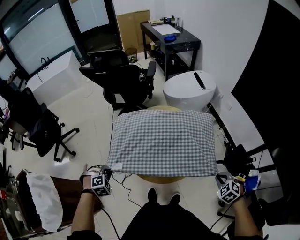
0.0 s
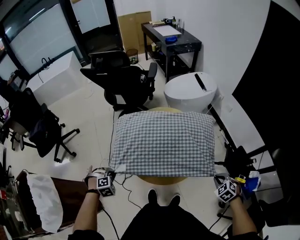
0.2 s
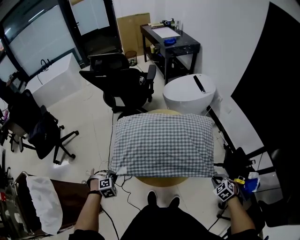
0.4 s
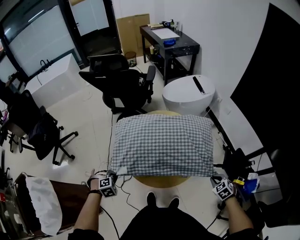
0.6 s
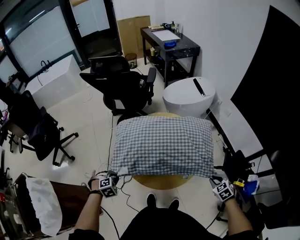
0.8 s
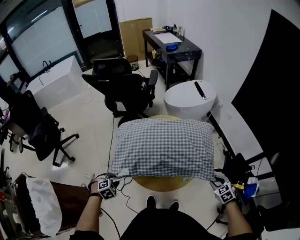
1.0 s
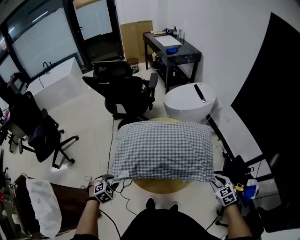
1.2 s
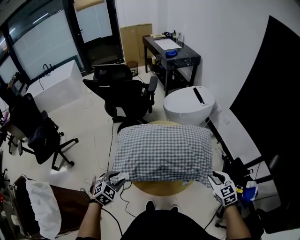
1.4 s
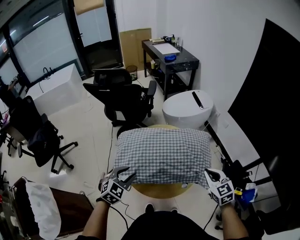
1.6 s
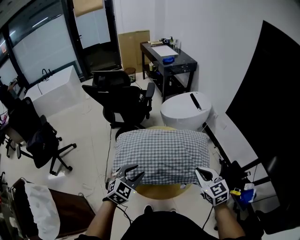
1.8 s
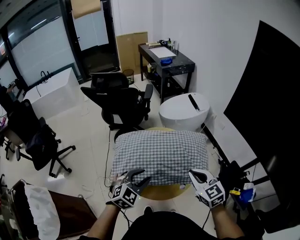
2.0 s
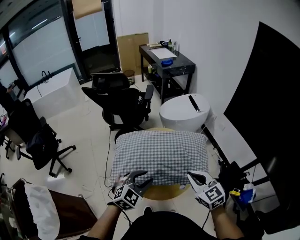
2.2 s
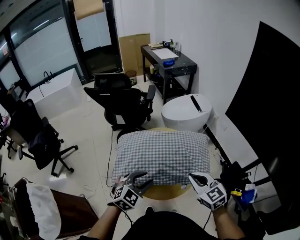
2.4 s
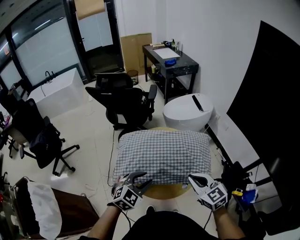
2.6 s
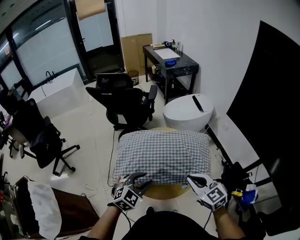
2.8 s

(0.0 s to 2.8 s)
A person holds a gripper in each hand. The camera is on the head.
0.0 s - 1.4 s: The right gripper heads forward and upward, covering about 10 cm, changes its angle by some 30 degrees, and opens its fingers; the left gripper goes about 10 cm upward and to the right, turns by roughly 30 degrees, and opens.
1.4 s - 2.8 s: The right gripper moves to the left and upward, roughly 15 cm, turns by some 20 degrees, and closes. The left gripper heads to the right and upward, covering some 15 cm.

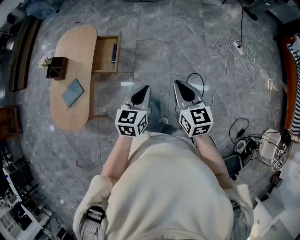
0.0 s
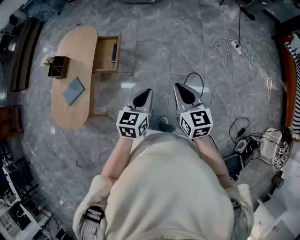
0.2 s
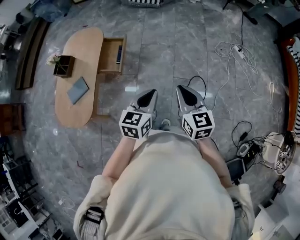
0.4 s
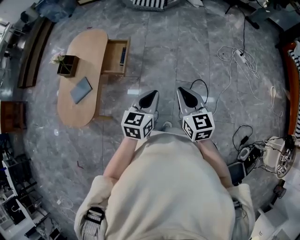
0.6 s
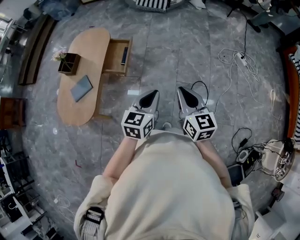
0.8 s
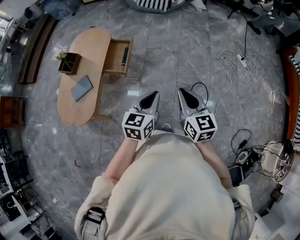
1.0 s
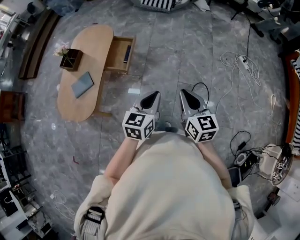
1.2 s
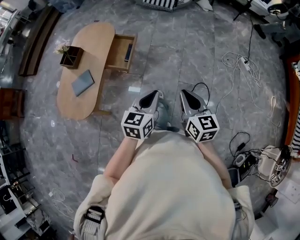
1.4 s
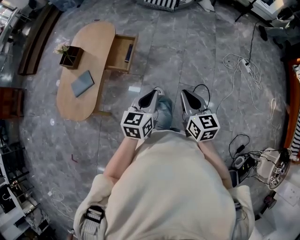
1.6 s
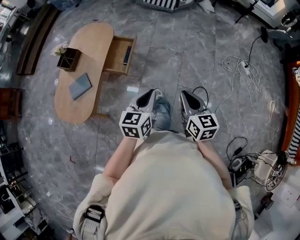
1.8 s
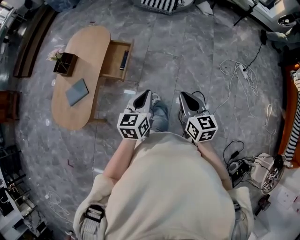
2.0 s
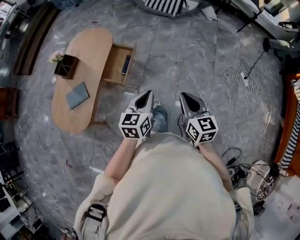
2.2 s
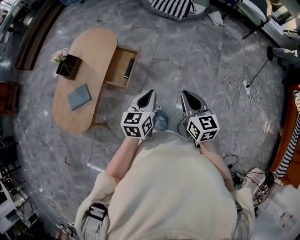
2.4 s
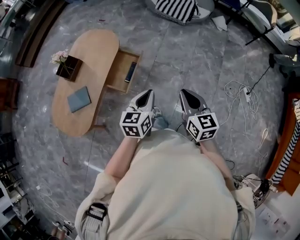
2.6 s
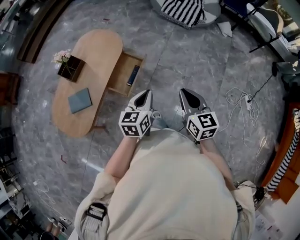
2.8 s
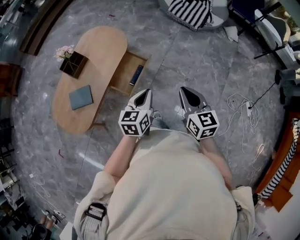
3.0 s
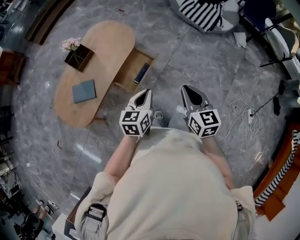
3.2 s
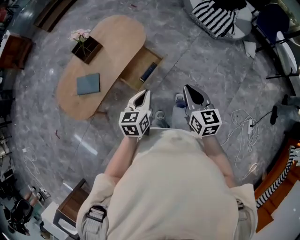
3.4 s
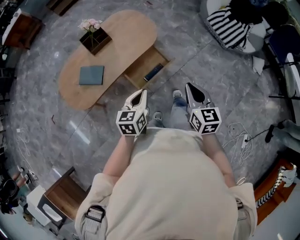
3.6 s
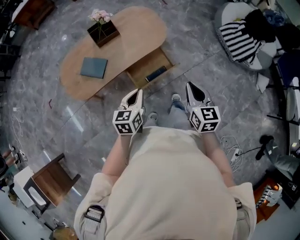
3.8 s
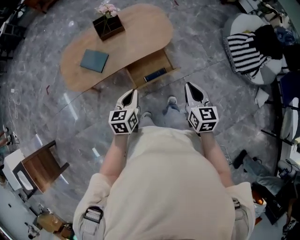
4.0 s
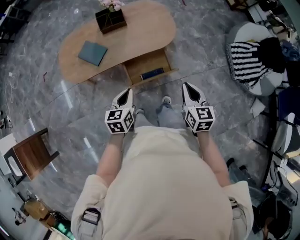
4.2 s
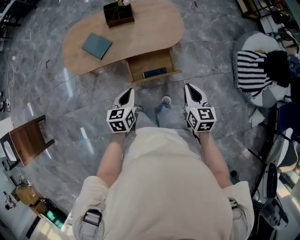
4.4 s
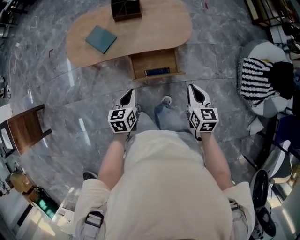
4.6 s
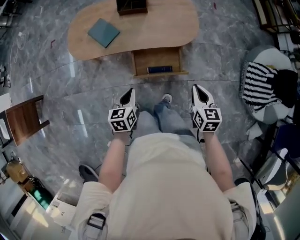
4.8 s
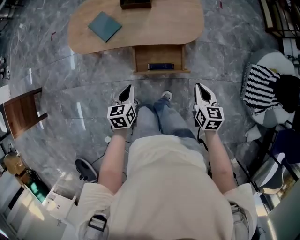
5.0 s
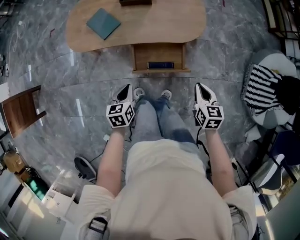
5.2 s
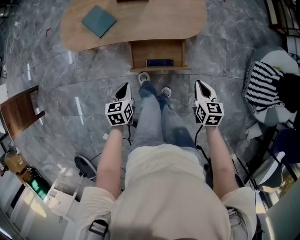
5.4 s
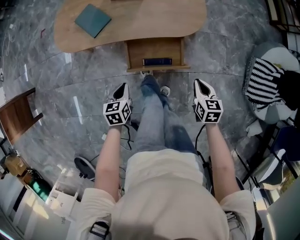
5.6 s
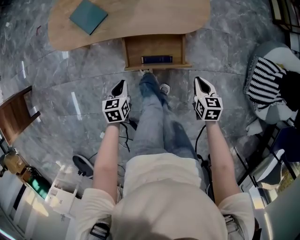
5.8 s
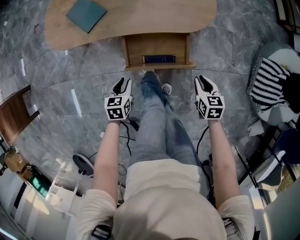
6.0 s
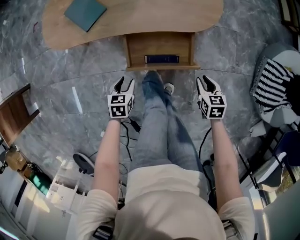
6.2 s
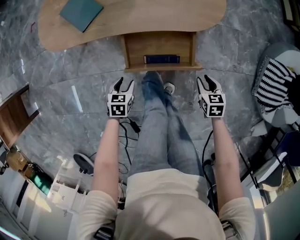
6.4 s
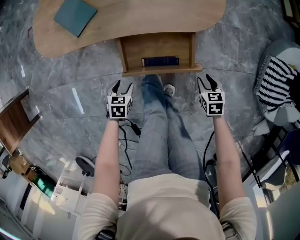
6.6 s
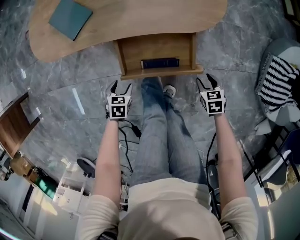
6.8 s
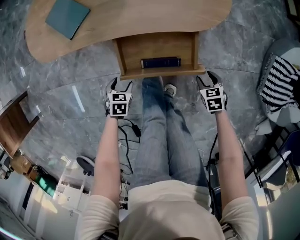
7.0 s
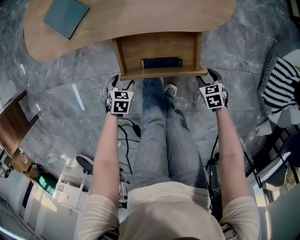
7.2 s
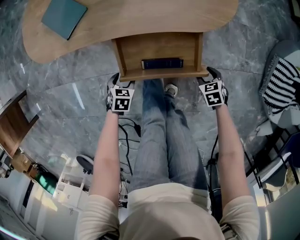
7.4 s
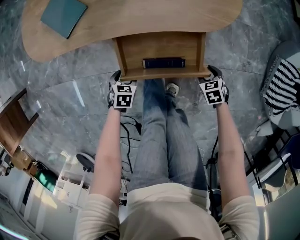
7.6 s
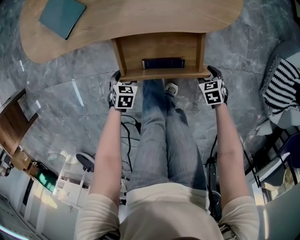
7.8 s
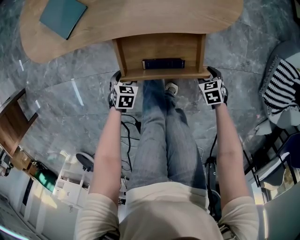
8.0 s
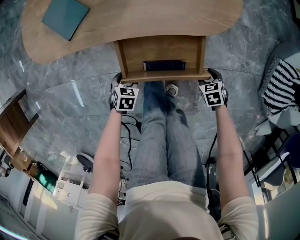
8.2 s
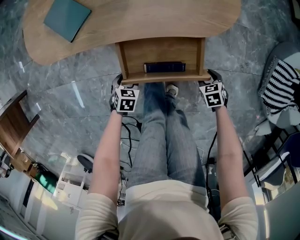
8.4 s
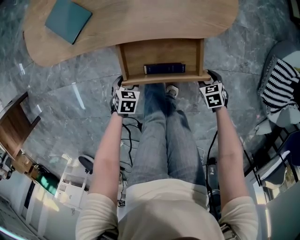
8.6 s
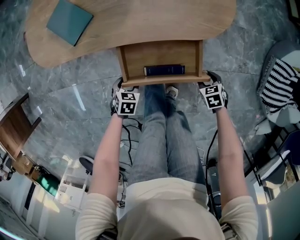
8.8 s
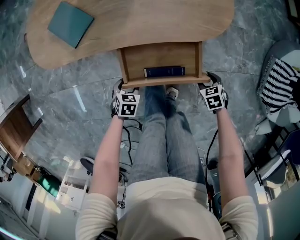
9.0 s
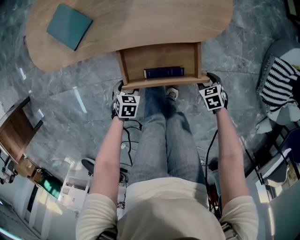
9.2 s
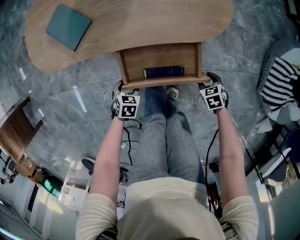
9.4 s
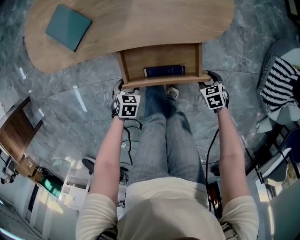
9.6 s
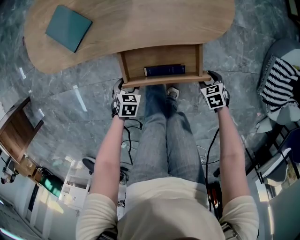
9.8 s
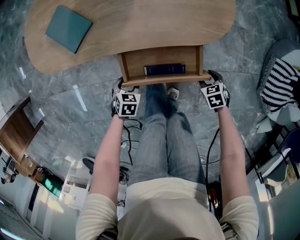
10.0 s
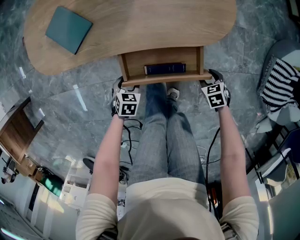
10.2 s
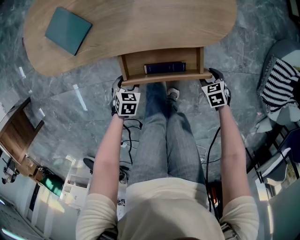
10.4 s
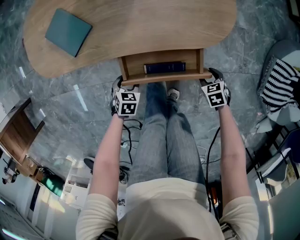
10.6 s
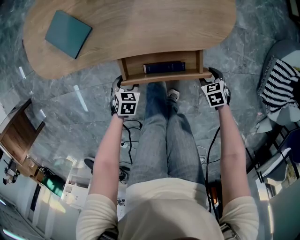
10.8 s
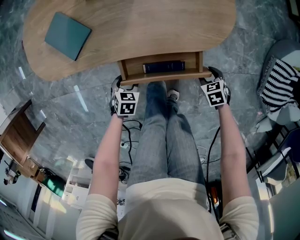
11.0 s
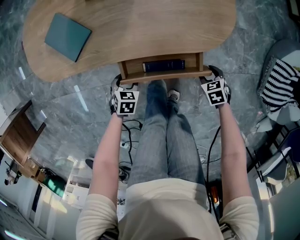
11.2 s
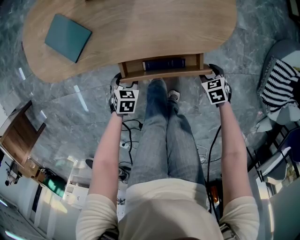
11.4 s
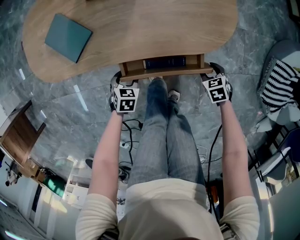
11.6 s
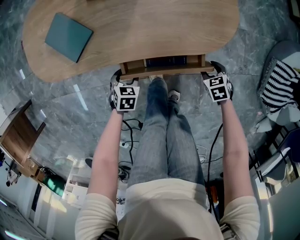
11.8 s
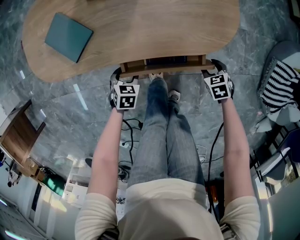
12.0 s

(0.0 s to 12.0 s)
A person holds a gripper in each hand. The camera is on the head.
0.0 s - 1.6 s: The grippers both shift backward by some 5 cm.
1.6 s - 3.0 s: Both grippers move forward, about 30 cm. The left gripper changes its angle by some 20 degrees.
3.0 s - 4.4 s: The left gripper shifts by roughly 15 cm, and rotates about 60 degrees. Meanwhile the right gripper ends up roughly 30 cm from where it was, and turns by approximately 40 degrees.
4.4 s - 6.0 s: Both grippers travel together downward, roughly 25 cm. The right gripper rotates approximately 20 degrees. The left gripper opens its fingers.
6.0 s - 7.6 s: Both grippers travel together downward, approximately 20 cm. The left gripper turns by some 20 degrees, and opens up. Meanwhile the right gripper changes its angle by about 30 degrees, and opens up.
7.6 s - 9.0 s: There are only small adjustments of the grippers.
9.0 s - 10.4 s: There are only small adjustments of the grippers.
10.4 s - 12.0 s: The left gripper ends up about 10 cm from where it was. The right gripper moves approximately 5 cm.

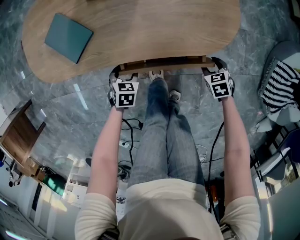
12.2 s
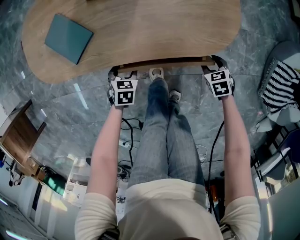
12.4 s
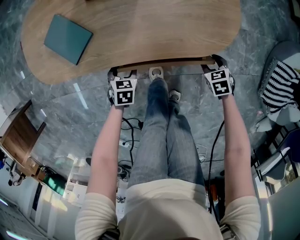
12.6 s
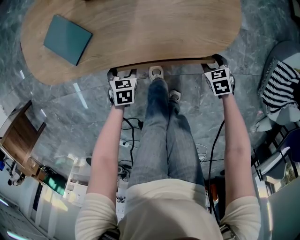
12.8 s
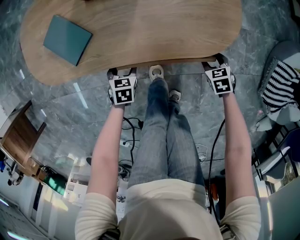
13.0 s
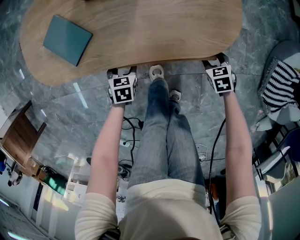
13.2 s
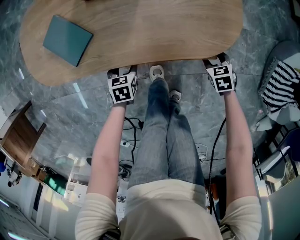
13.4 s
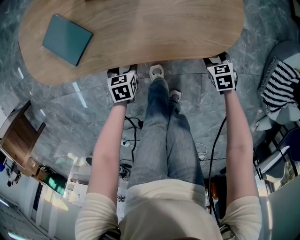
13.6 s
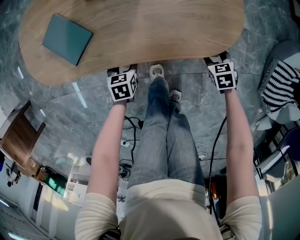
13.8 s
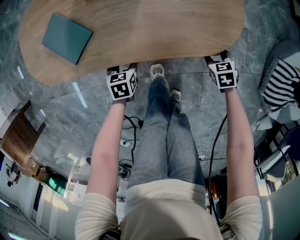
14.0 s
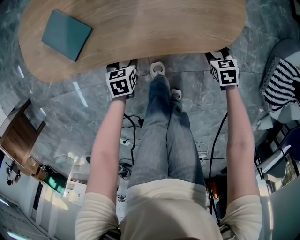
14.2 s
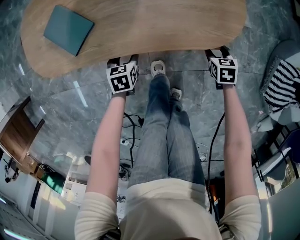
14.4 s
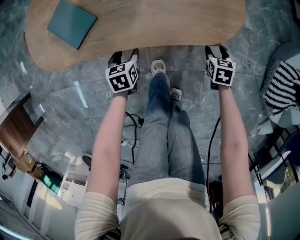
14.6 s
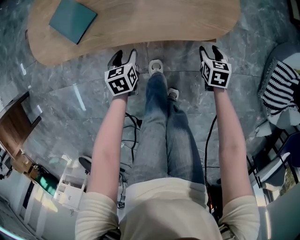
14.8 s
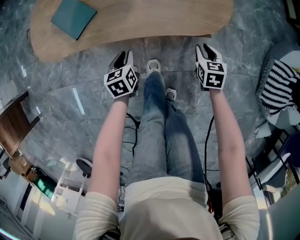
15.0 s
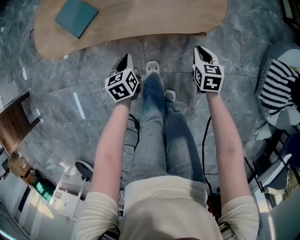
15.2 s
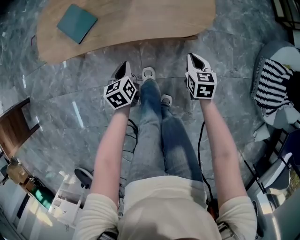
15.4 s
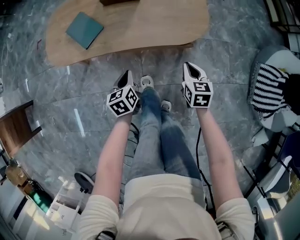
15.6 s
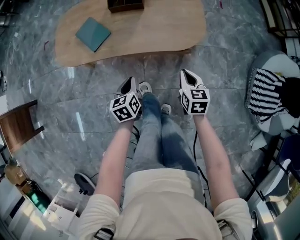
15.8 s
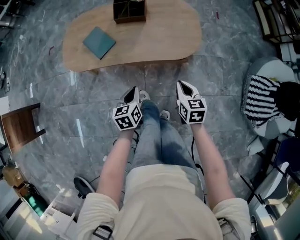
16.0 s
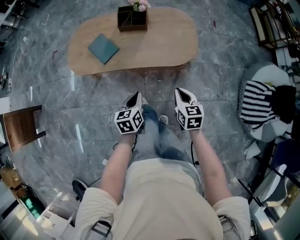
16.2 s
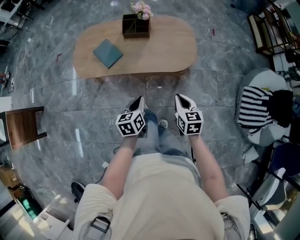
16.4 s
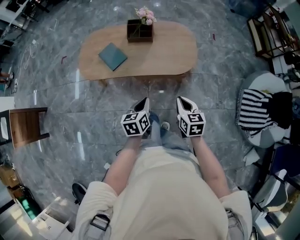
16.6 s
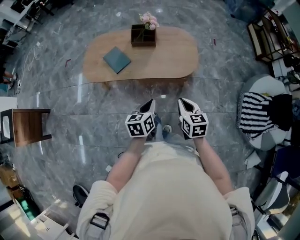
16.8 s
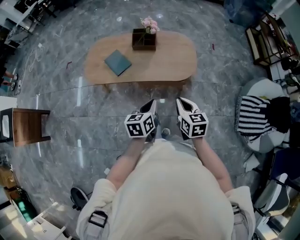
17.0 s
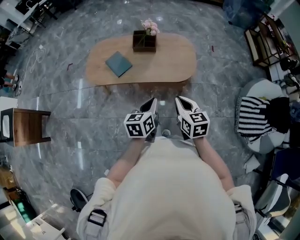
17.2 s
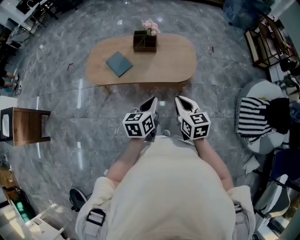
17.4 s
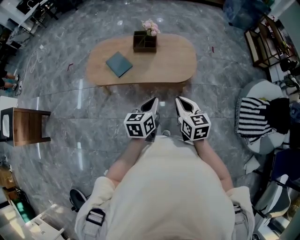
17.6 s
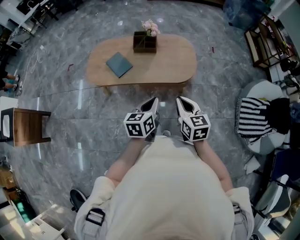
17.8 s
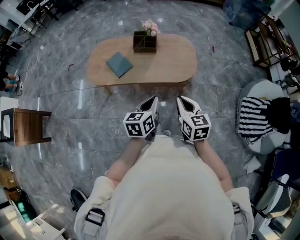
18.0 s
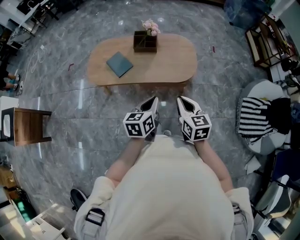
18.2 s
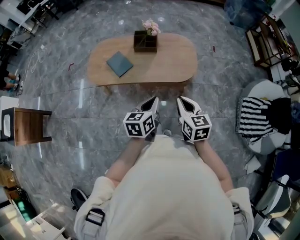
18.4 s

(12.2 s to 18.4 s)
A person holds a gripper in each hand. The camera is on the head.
12.2 s - 13.8 s: The two grippers go some 5 cm forward.
13.8 s - 15.4 s: Both grippers move upward and backward, some 15 cm. The left gripper changes its angle by some 30 degrees, and closes. Meanwhile the right gripper swivels about 30 degrees, and closes.
15.4 s - 16.8 s: The right gripper is displaced upward and backward by some 35 cm, while the left gripper travels upward by approximately 30 cm.
16.8 s - 18.4 s: Both grippers travel together upward, about 5 cm.

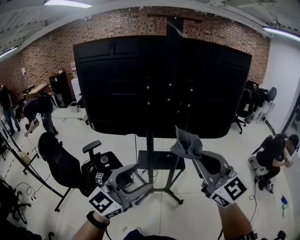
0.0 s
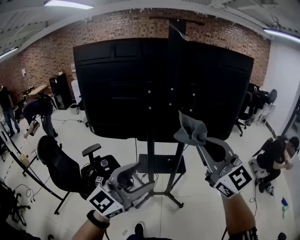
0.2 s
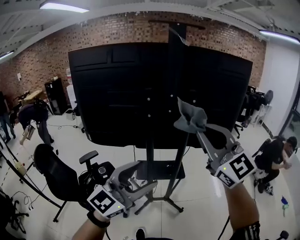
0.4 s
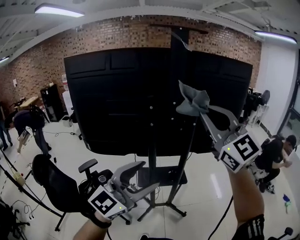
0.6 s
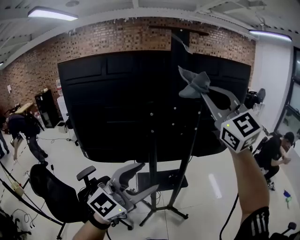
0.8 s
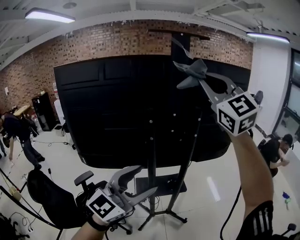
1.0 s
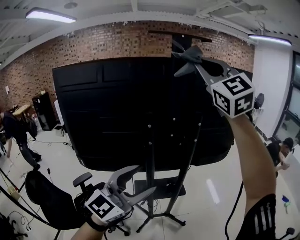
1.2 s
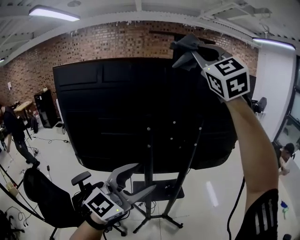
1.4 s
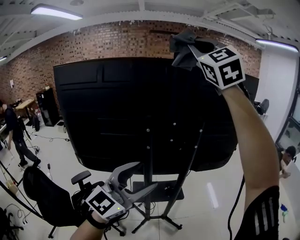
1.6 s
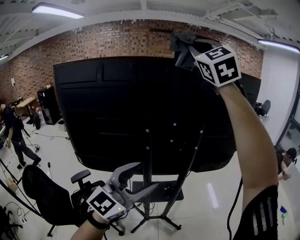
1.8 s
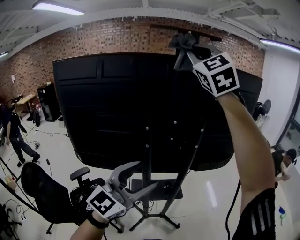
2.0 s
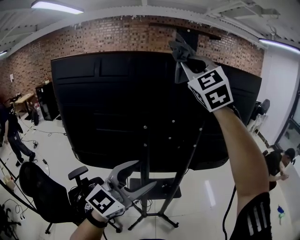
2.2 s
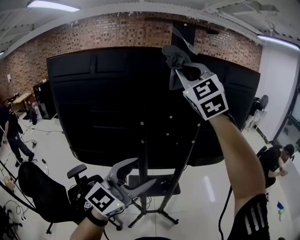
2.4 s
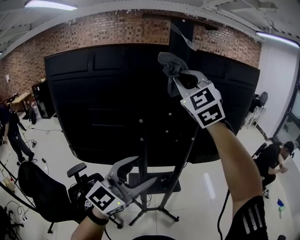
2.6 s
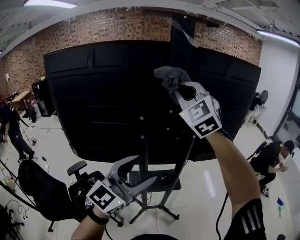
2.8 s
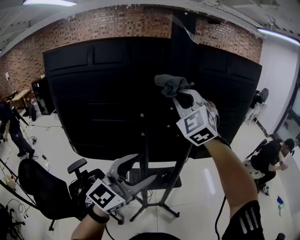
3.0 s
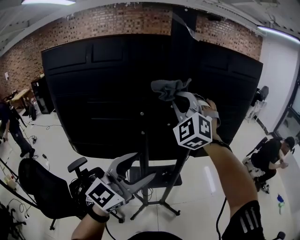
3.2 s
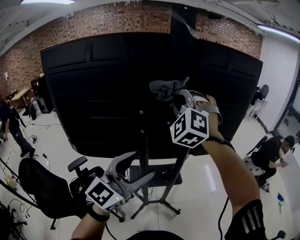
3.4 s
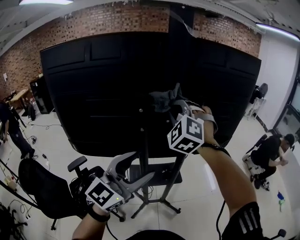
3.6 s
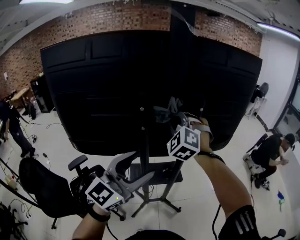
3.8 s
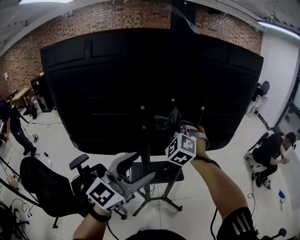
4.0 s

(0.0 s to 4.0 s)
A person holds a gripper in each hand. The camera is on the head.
0.0 s - 1.4 s: The left gripper goes approximately 20 cm forward and upward. The right gripper is displaced upward and forward by approximately 50 cm, and rotates about 40 degrees.
1.4 s - 2.6 s: The left gripper shifts by roughly 5 cm. Meanwhile the right gripper goes roughly 15 cm downward.
2.6 s - 4.0 s: The right gripper heads downward, covering about 30 cm, and rotates about 30 degrees.
